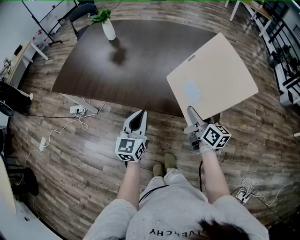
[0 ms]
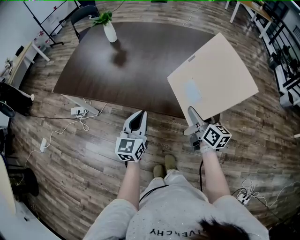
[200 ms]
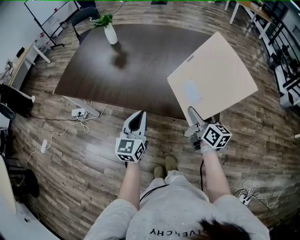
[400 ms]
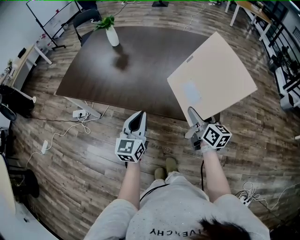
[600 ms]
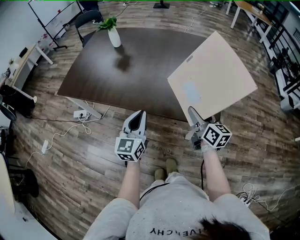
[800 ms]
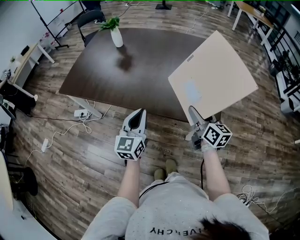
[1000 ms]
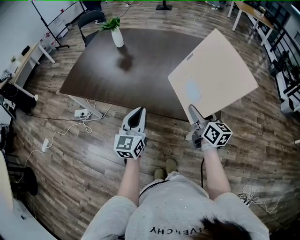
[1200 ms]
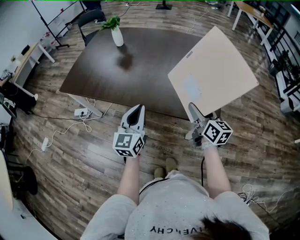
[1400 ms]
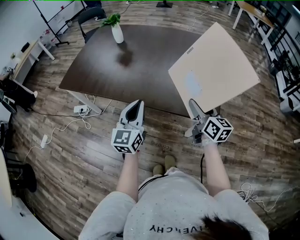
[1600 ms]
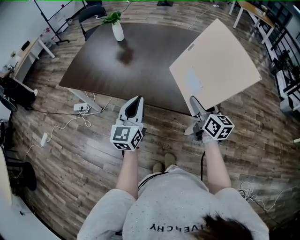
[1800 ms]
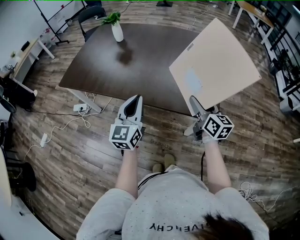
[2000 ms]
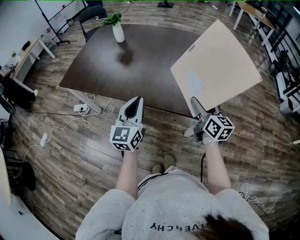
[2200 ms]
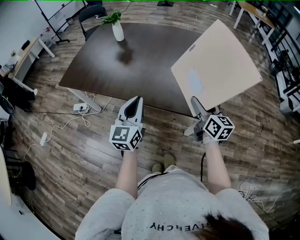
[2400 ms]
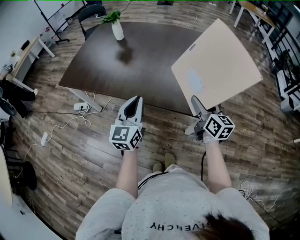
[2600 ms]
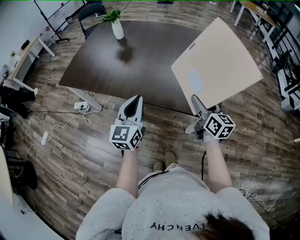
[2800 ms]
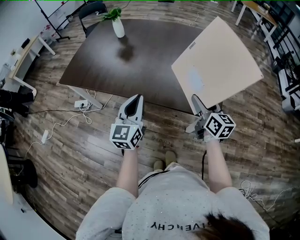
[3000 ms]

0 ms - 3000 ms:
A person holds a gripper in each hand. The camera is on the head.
0 ms - 1600 ms: Both grippers travel together upward, roughly 5 cm.
1600 ms - 3000 ms: Both grippers stay about where they are.

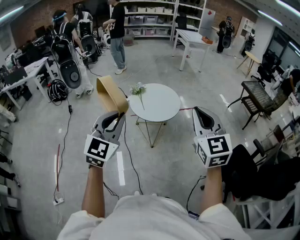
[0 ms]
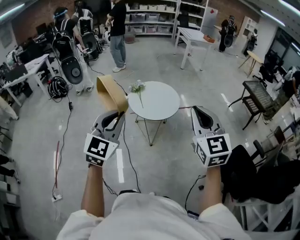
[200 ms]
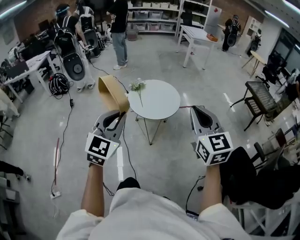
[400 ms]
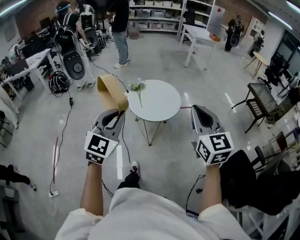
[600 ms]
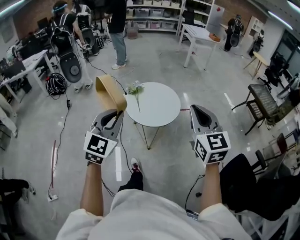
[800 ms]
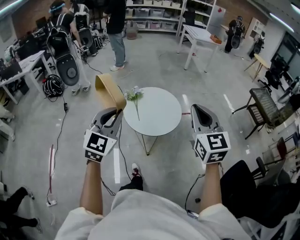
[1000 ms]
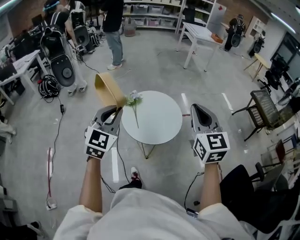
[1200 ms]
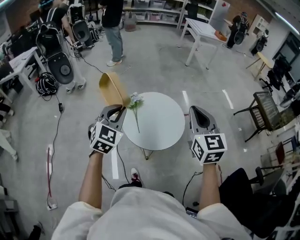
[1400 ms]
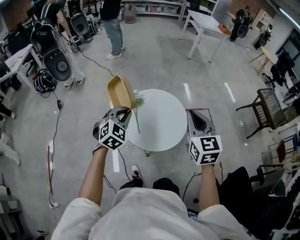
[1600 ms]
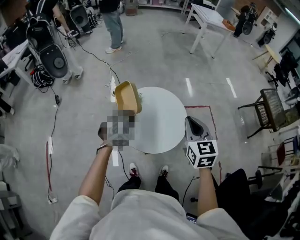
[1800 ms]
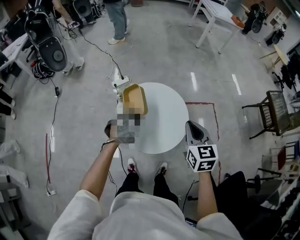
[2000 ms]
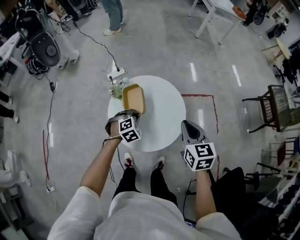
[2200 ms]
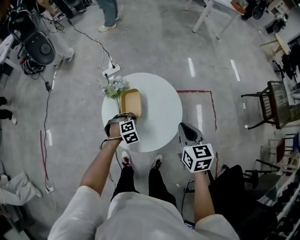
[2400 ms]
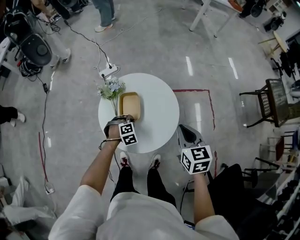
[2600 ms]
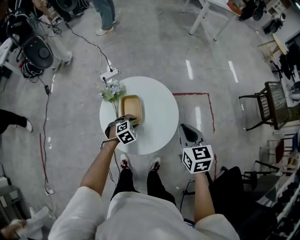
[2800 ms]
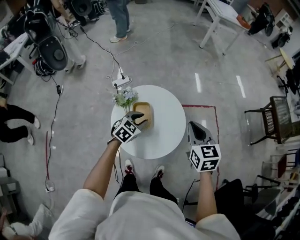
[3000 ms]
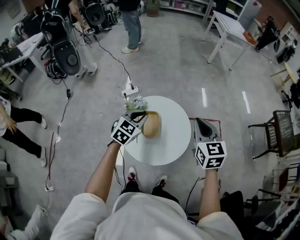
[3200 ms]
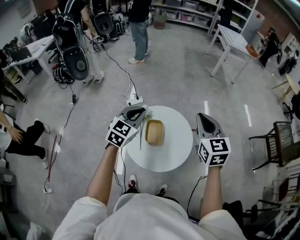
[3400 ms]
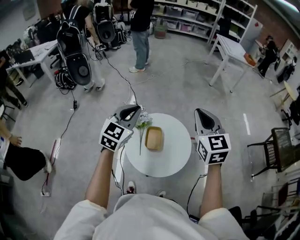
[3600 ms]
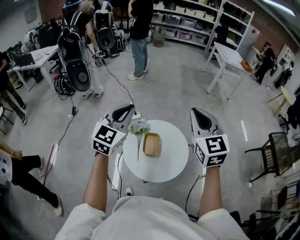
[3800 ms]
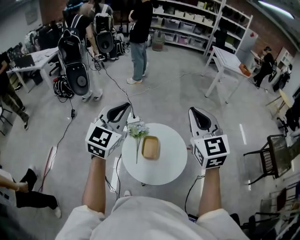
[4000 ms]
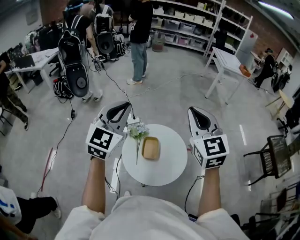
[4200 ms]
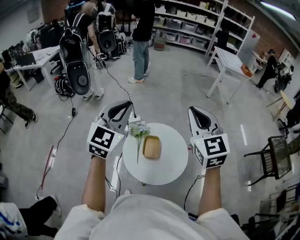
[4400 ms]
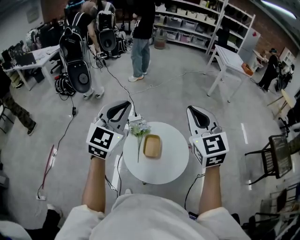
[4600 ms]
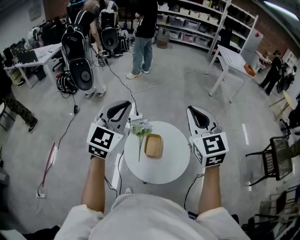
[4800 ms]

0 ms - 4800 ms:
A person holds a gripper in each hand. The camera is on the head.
0 ms - 1600 ms: Both grippers are carried forward, some 50 cm. The left gripper rotates some 30 degrees.
1600 ms - 3200 ms: The left gripper moves forward and to the right, about 15 cm, travels downward and back again, about 35 cm each way, rotates approximately 20 degrees, and opens and closes again; the right gripper is displaced forward by some 15 cm, and reaches roughly 20 cm downward, then returns.
3200 ms - 4800 ms: Both grippers move upward and to the left, some 25 cm. The right gripper changes its angle by some 30 degrees, while the left gripper changes its angle by about 30 degrees.

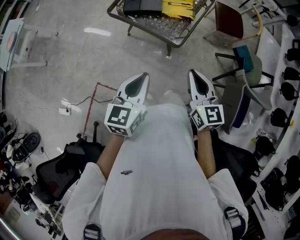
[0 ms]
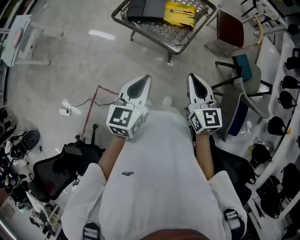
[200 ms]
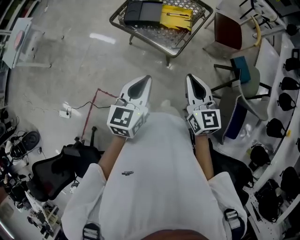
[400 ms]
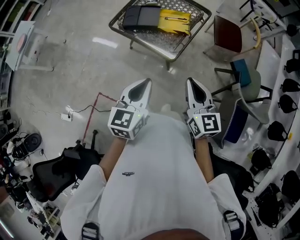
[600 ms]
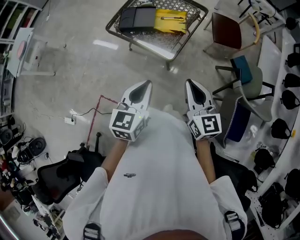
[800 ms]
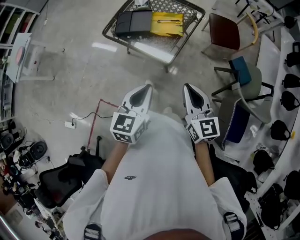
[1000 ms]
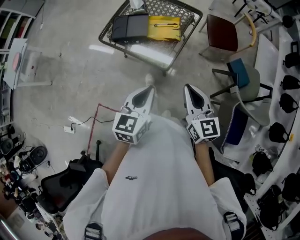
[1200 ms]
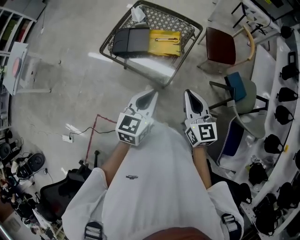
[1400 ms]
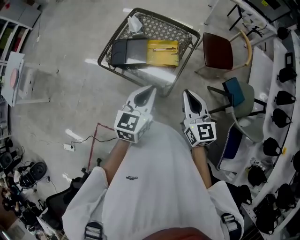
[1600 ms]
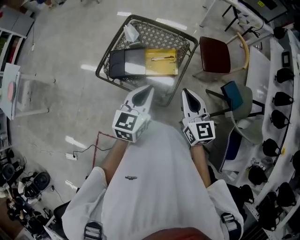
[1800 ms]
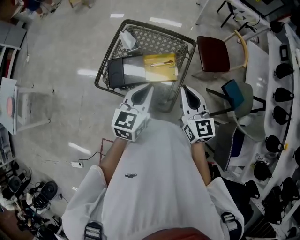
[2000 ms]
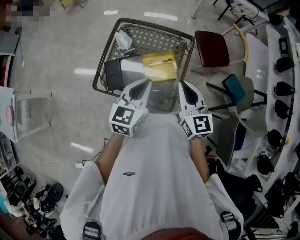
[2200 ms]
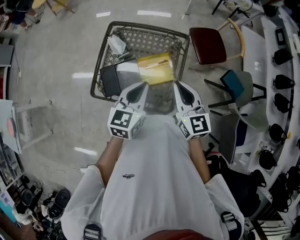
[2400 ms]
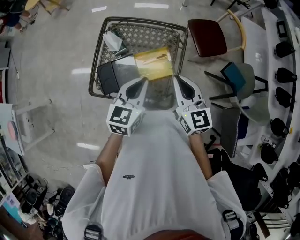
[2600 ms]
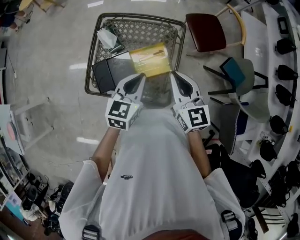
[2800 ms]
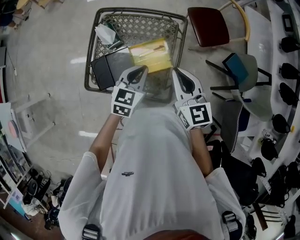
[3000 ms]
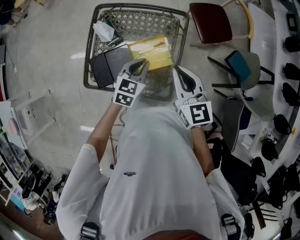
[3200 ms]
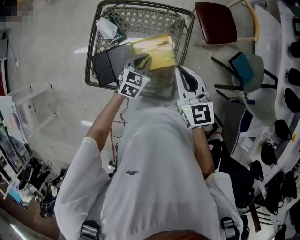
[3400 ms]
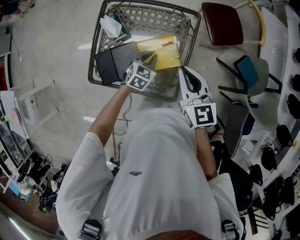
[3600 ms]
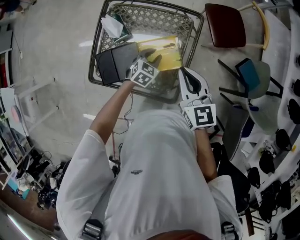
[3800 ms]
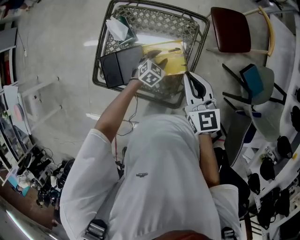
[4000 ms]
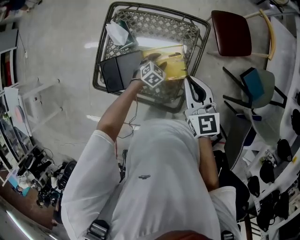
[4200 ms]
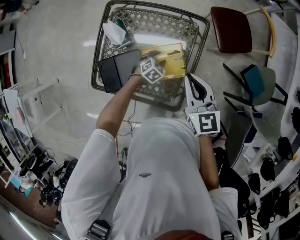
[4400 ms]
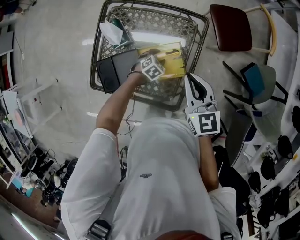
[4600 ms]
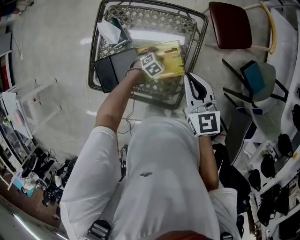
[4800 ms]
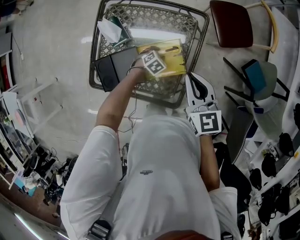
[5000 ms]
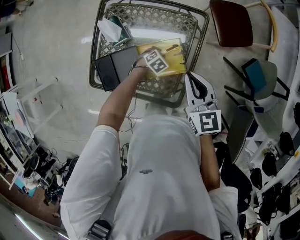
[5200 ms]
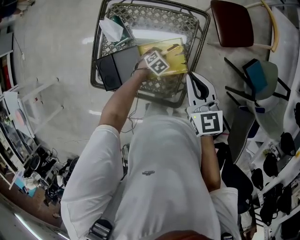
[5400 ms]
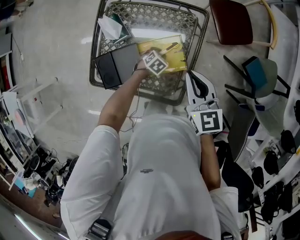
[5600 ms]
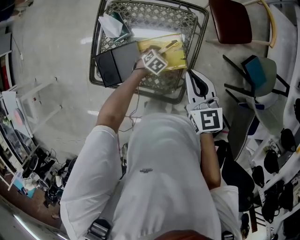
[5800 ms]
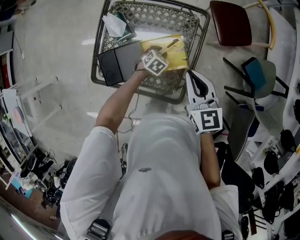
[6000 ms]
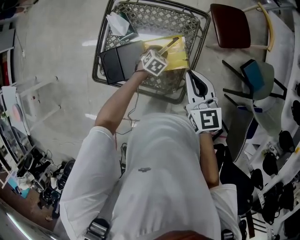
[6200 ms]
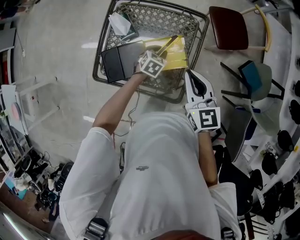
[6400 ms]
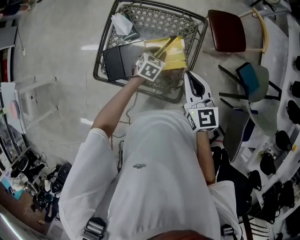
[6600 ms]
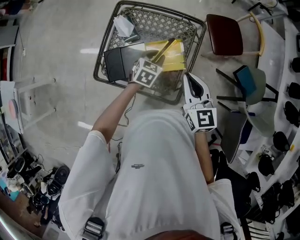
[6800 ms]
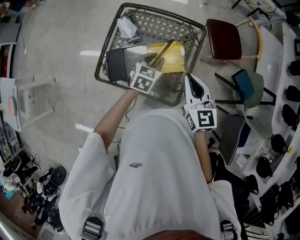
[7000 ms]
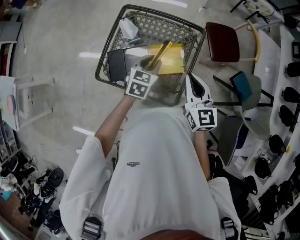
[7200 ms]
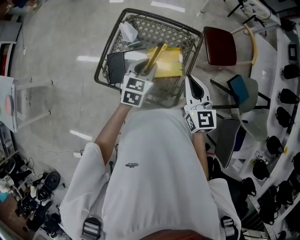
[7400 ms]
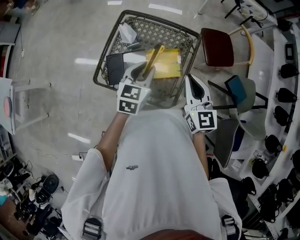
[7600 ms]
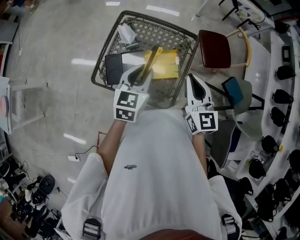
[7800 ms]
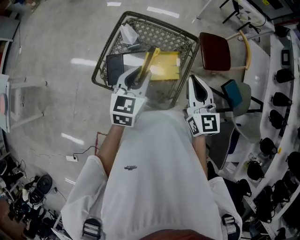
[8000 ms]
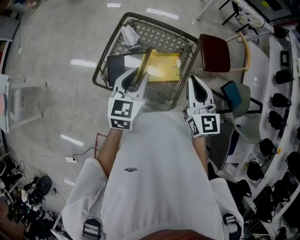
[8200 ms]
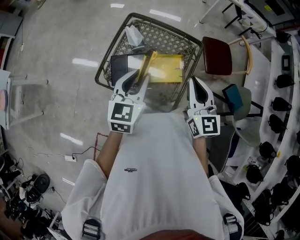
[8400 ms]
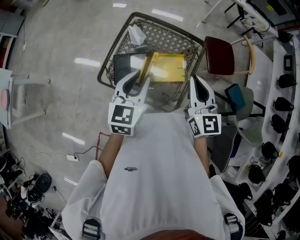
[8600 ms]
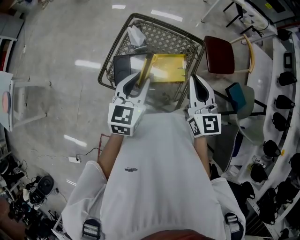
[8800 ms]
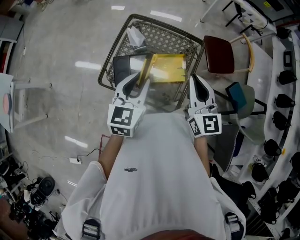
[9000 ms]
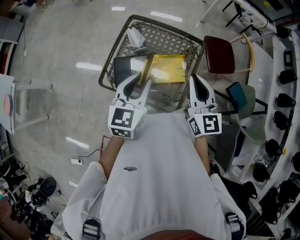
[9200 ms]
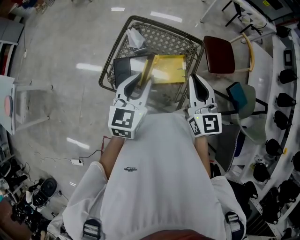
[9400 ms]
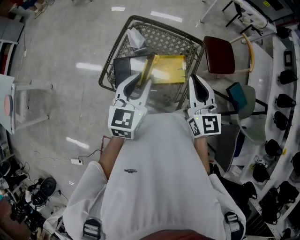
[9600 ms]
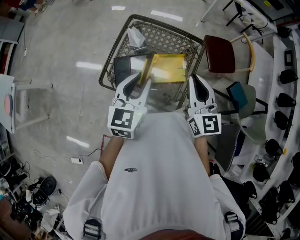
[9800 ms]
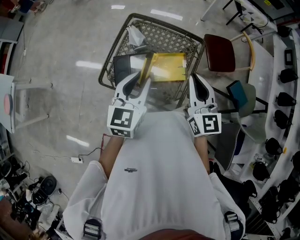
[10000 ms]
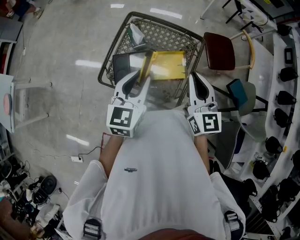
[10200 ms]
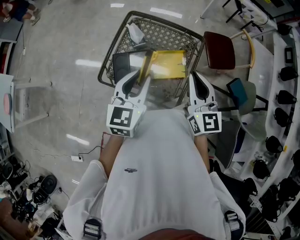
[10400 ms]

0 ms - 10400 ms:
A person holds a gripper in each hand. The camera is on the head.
0 ms - 1400 ms: The grippers both shift forward and to the right by about 15 cm.
1400 ms - 3000 ms: Both grippers move forward, approximately 30 cm. The left gripper swivels roughly 30 degrees.
3000 ms - 4400 ms: The right gripper shifts about 10 cm downward and forward. The left gripper travels downward by some 30 cm, rotates some 40 degrees, and opens its fingers.
4400 ms - 6000 ms: The grippers move only a little.
6000 ms - 7400 ms: The right gripper shifts about 10 cm upward and backward. The left gripper goes approximately 30 cm upward, and tilts its fingers some 30 degrees upward.
7400 ms - 9000 ms: The right gripper heads upward, covering some 5 cm. Meanwhile the left gripper heads upward, to the left and backward, covering approximately 15 cm.
9000 ms - 10400 ms: The grippers stay close to where they were, moving slightly.

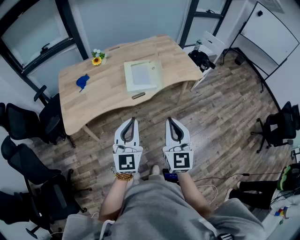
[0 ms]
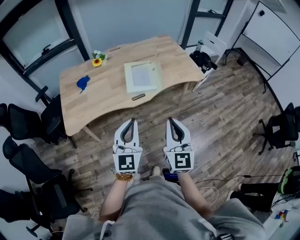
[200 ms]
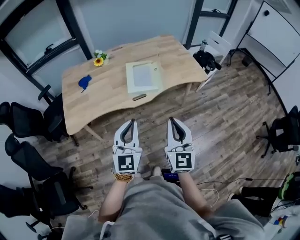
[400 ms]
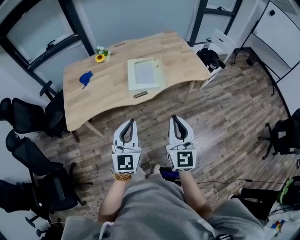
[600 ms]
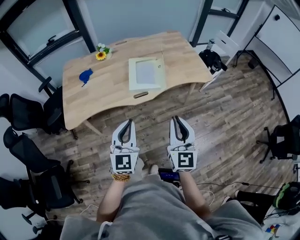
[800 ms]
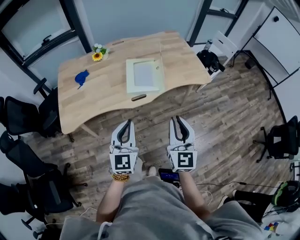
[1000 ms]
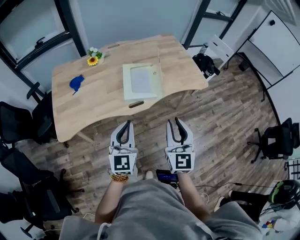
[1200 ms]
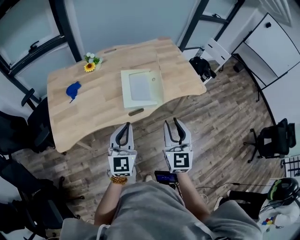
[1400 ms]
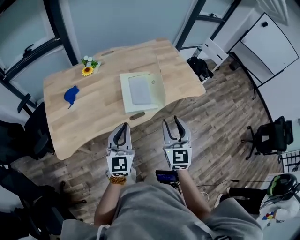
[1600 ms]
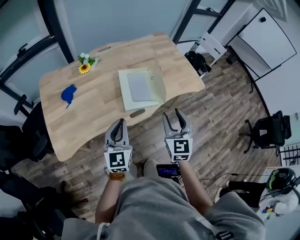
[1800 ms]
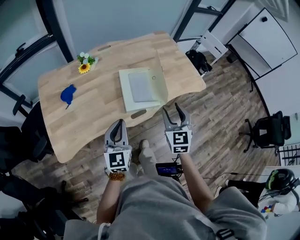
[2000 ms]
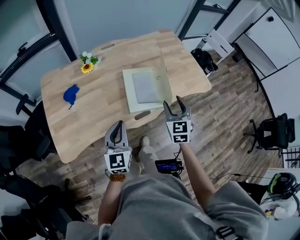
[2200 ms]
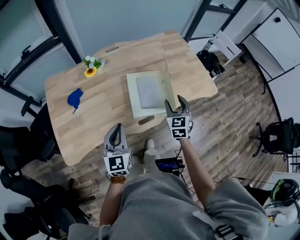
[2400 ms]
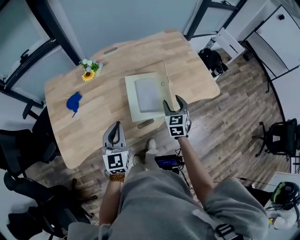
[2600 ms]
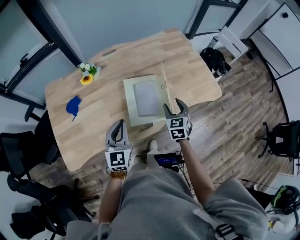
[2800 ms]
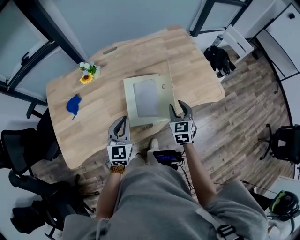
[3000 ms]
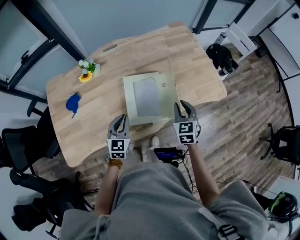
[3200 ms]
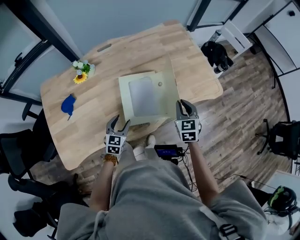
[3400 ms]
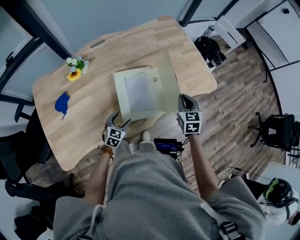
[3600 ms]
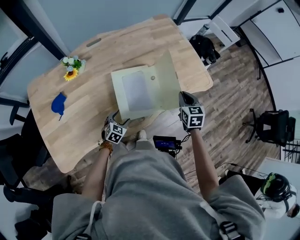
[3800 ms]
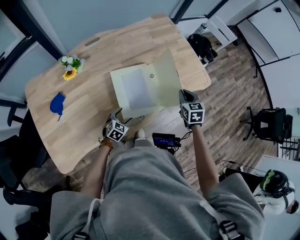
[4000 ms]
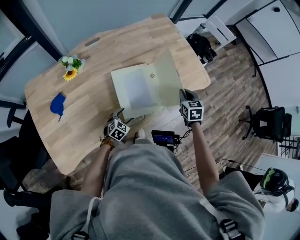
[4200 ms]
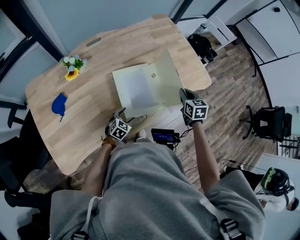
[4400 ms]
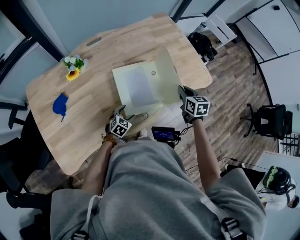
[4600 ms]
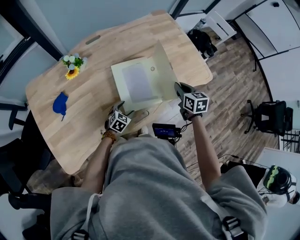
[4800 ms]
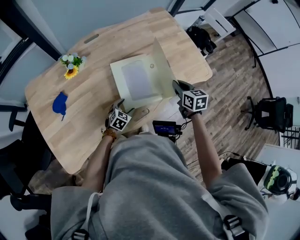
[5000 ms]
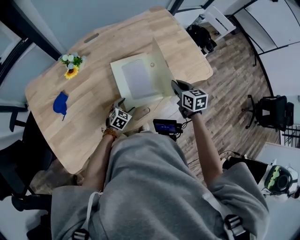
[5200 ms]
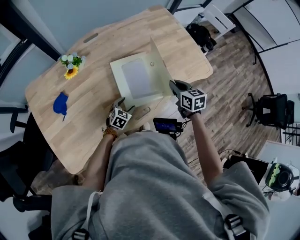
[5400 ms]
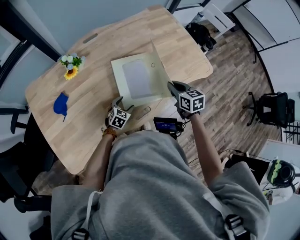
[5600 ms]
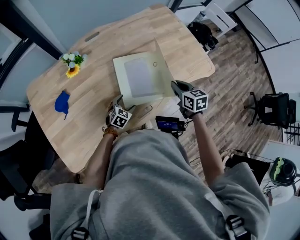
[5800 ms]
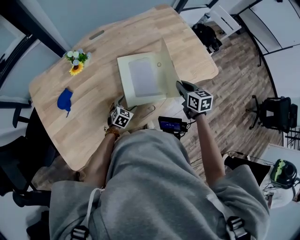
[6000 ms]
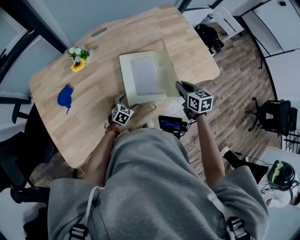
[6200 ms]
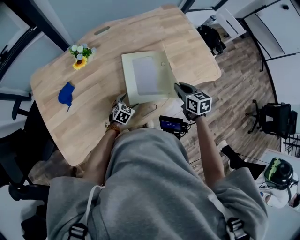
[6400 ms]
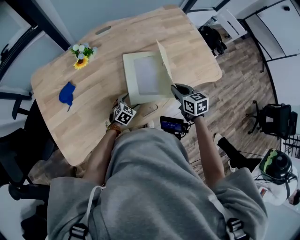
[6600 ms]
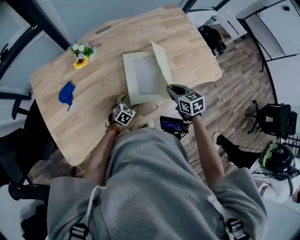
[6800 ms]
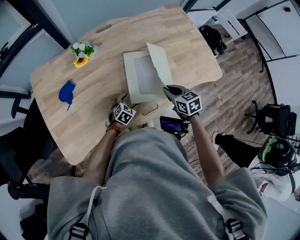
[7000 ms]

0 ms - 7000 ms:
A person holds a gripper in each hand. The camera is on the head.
0 ms - 1400 ms: The two grippers go about 15 cm forward. The right gripper opens up.
1400 ms - 2800 ms: The left gripper travels forward by roughly 20 cm; the right gripper moves forward and downward, about 35 cm, turns by some 30 degrees, and opens up.
2800 ms - 4200 ms: The right gripper heads to the right, covering roughly 10 cm, and closes its fingers. The left gripper goes roughly 30 cm downward, tilts its fingers some 30 degrees downward, and opens up.
4200 ms - 5600 ms: The right gripper shifts approximately 10 cm to the left, and turns by about 20 degrees.
5600 ms - 7000 ms: The right gripper heads to the left, covering approximately 10 cm.
